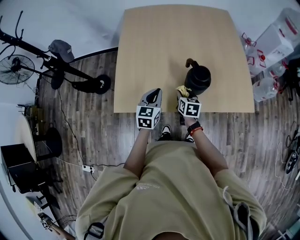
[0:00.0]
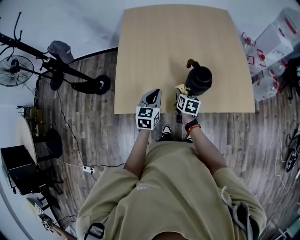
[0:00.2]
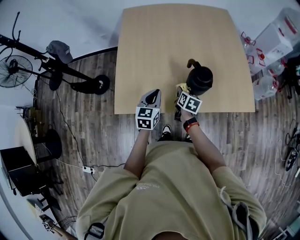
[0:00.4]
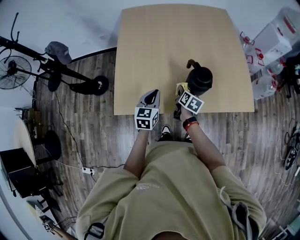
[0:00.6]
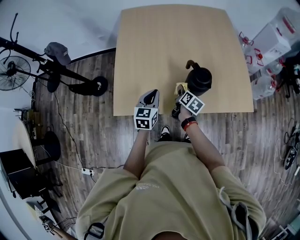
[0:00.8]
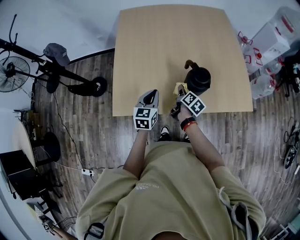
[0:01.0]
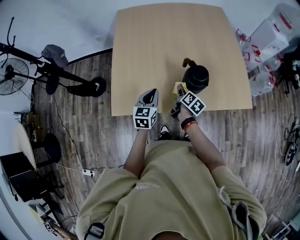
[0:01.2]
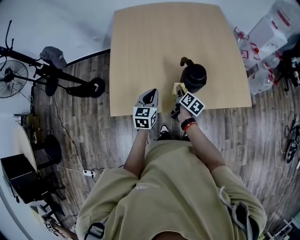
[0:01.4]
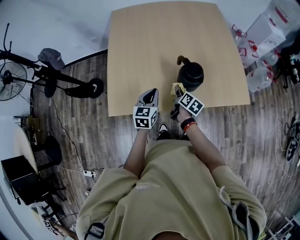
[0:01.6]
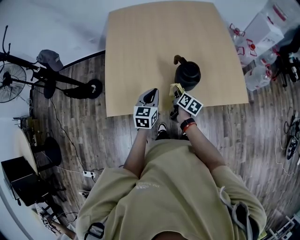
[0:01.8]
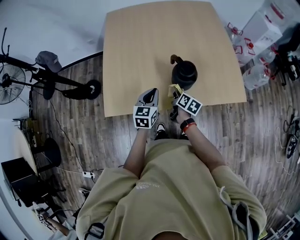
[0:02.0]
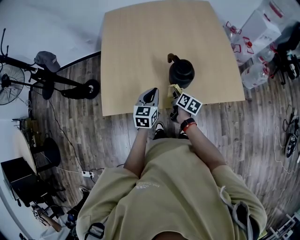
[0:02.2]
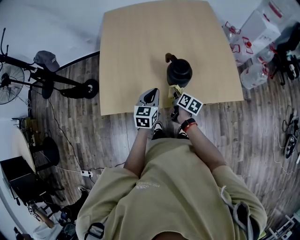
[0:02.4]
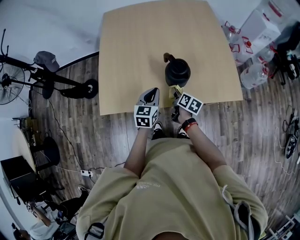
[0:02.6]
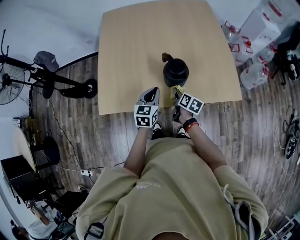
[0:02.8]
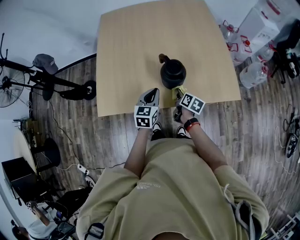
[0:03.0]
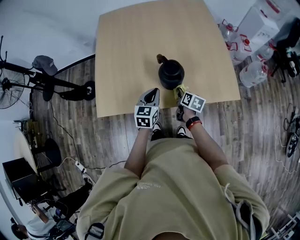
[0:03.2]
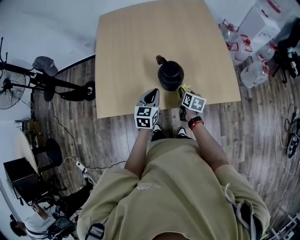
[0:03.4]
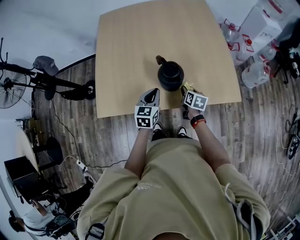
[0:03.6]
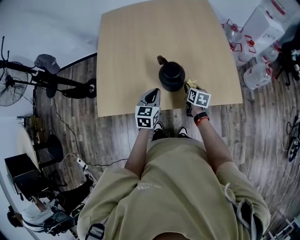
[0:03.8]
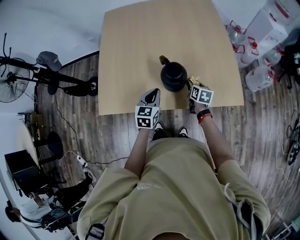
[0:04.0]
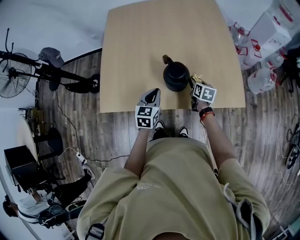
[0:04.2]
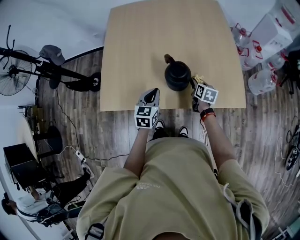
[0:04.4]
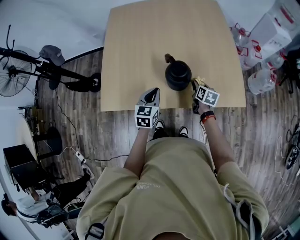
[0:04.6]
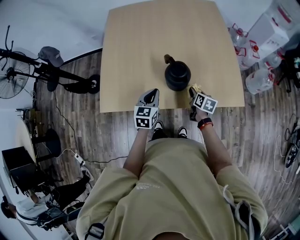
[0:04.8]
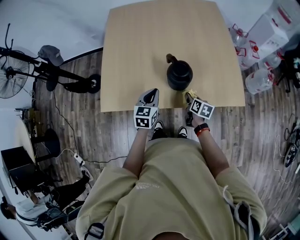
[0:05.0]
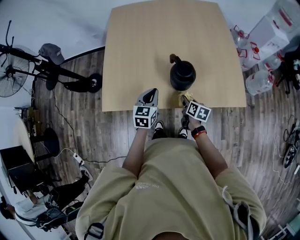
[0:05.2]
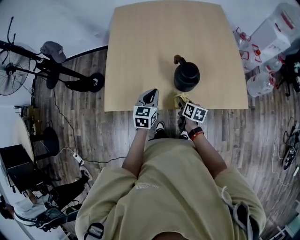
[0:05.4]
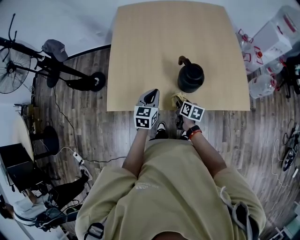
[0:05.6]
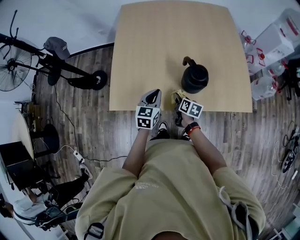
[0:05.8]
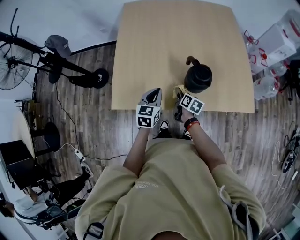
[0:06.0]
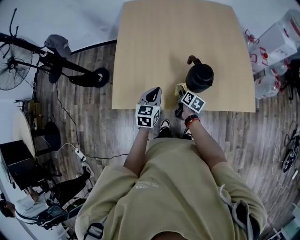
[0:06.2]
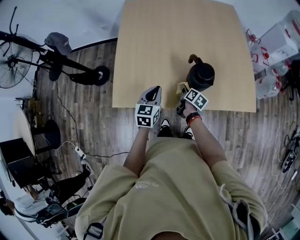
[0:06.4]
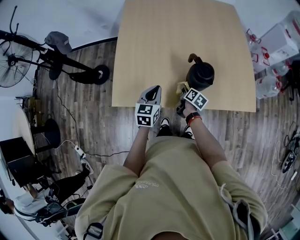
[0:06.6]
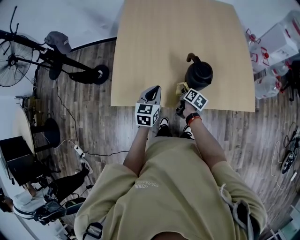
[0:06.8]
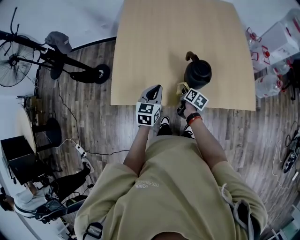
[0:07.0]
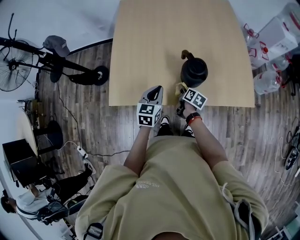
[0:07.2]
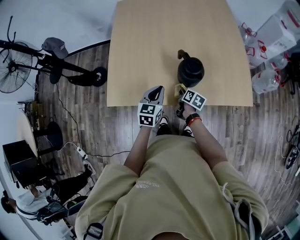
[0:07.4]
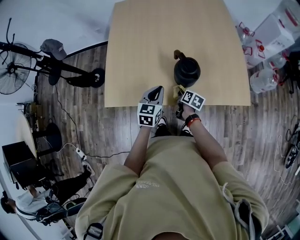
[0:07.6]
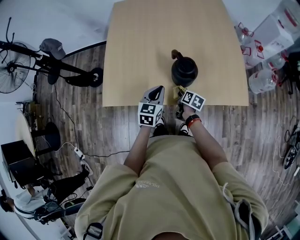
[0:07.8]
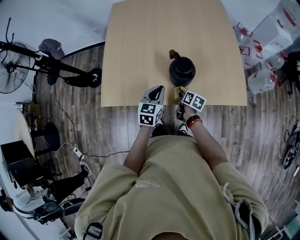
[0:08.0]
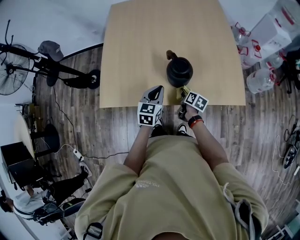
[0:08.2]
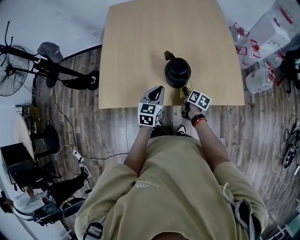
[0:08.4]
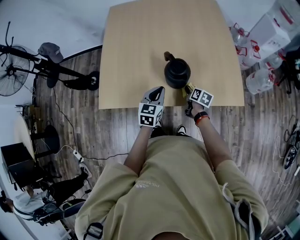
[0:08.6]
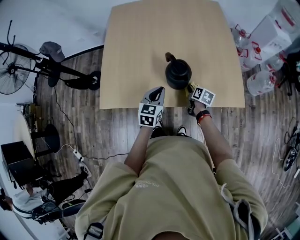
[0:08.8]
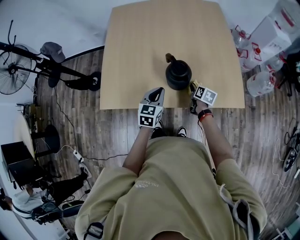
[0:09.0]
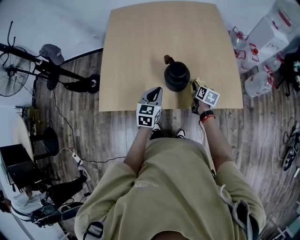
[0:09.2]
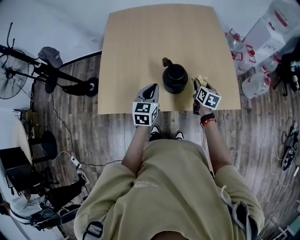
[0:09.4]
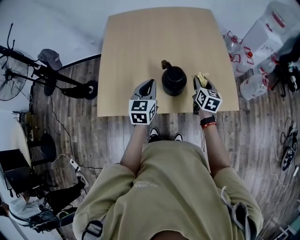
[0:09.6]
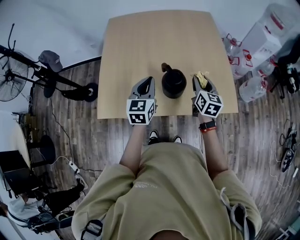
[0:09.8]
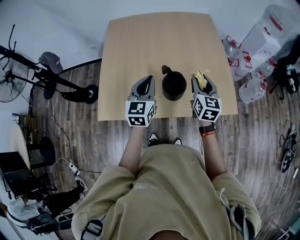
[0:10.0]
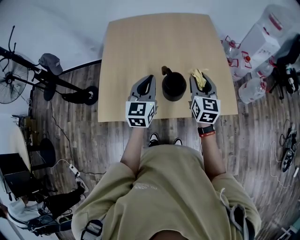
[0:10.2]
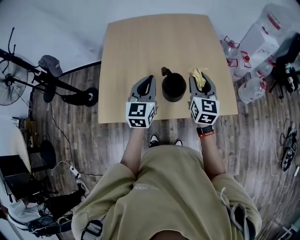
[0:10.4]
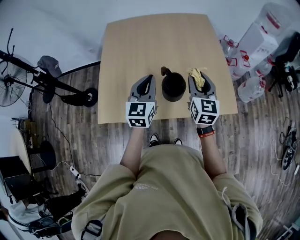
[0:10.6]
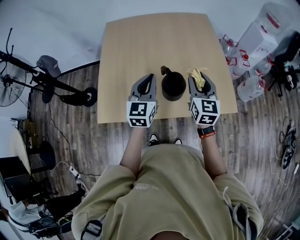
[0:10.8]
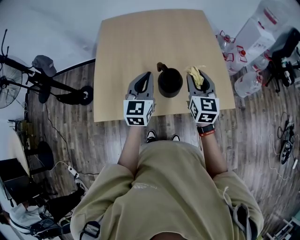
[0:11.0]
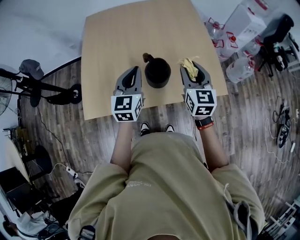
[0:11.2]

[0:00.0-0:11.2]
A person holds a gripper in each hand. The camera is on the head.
0:00.0 to 0:01.6: The right gripper turns by about 40 degrees.
0:01.6 to 0:03.2: Both grippers travel together to the right, roughly 15 cm.
0:03.2 to 0:04.8: The right gripper goes forward and returns, some 10 cm each way.
0:04.8 to 0:06.4: The grippers both shift to the left by about 15 cm.
0:06.4 to 0:08.0: The grippers both shift to the right by roughly 10 cm.
0:08.0 to 0:09.6: The left gripper shifts about 10 cm upward; the right gripper moves upward and to the right, roughly 20 cm, and turns by roughly 40 degrees.
0:09.6 to 0:11.2: The left gripper heads upward, covering roughly 5 cm. Meanwhile the right gripper goes approximately 15 cm upward, and swivels roughly 20 degrees.

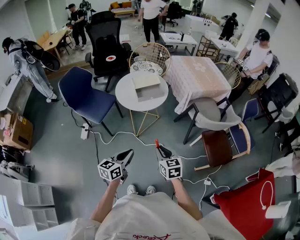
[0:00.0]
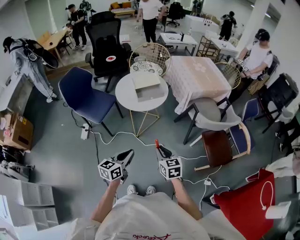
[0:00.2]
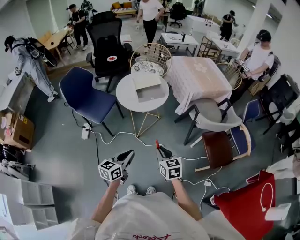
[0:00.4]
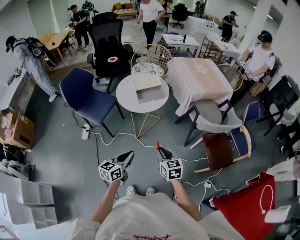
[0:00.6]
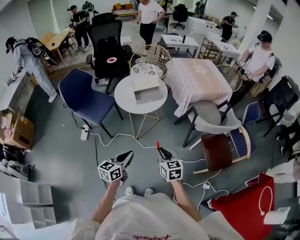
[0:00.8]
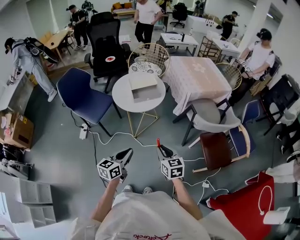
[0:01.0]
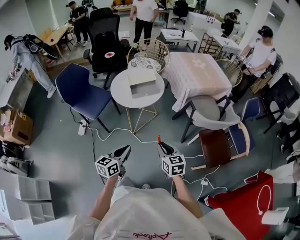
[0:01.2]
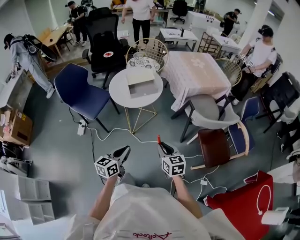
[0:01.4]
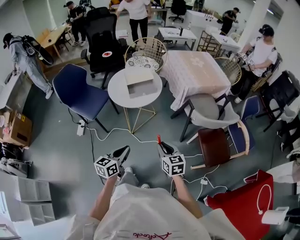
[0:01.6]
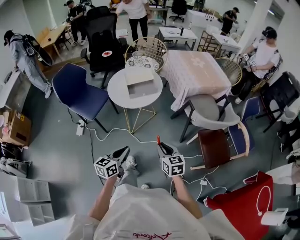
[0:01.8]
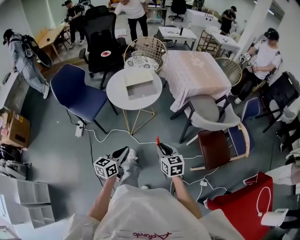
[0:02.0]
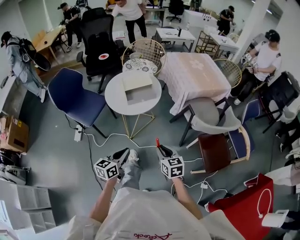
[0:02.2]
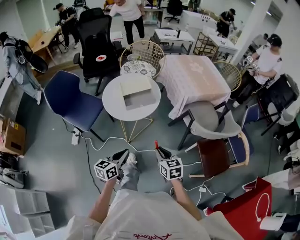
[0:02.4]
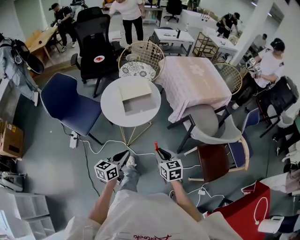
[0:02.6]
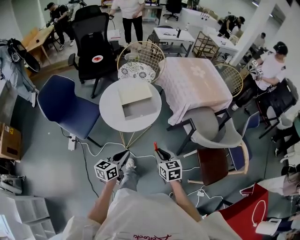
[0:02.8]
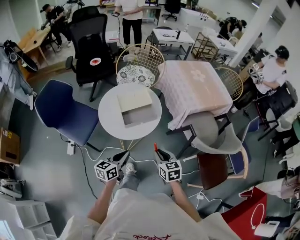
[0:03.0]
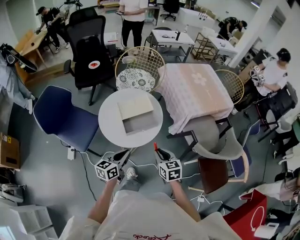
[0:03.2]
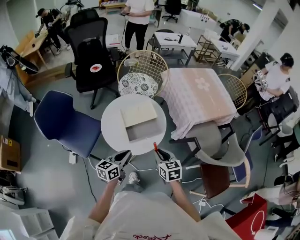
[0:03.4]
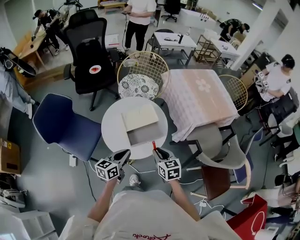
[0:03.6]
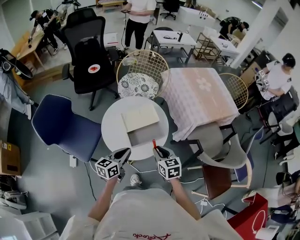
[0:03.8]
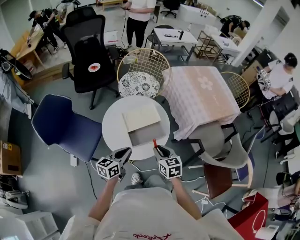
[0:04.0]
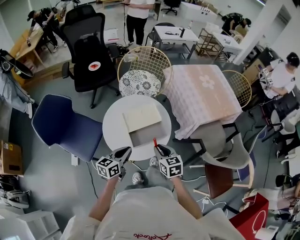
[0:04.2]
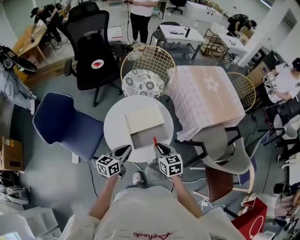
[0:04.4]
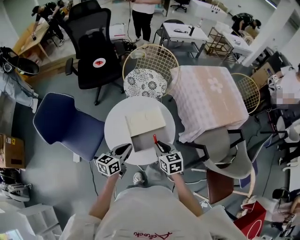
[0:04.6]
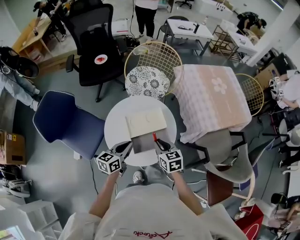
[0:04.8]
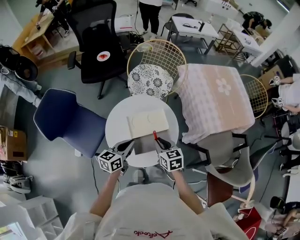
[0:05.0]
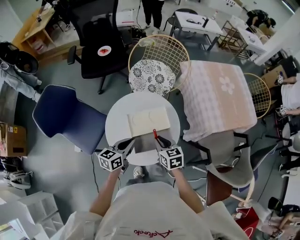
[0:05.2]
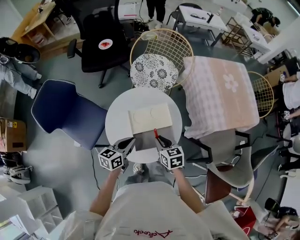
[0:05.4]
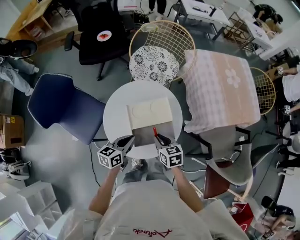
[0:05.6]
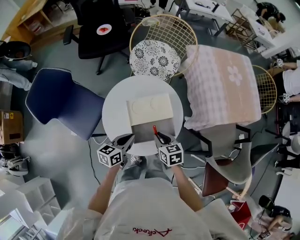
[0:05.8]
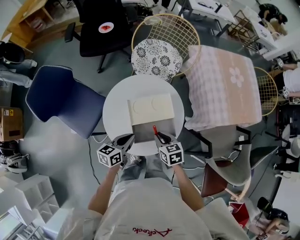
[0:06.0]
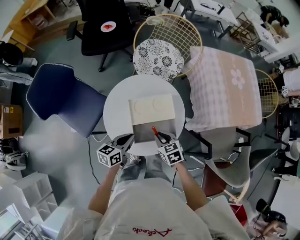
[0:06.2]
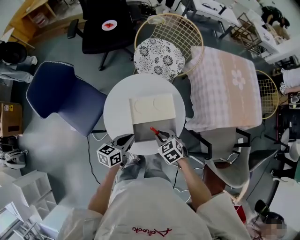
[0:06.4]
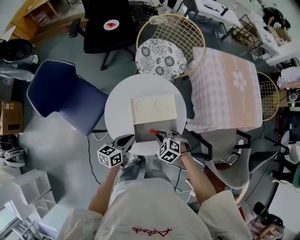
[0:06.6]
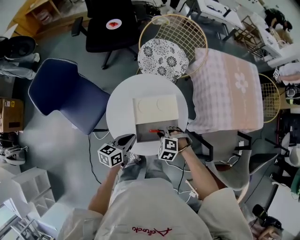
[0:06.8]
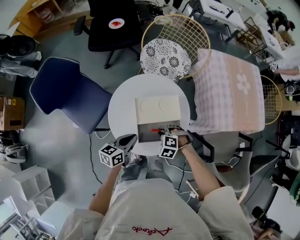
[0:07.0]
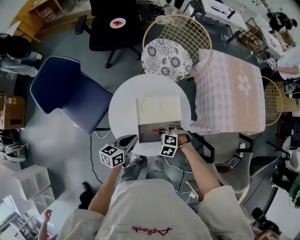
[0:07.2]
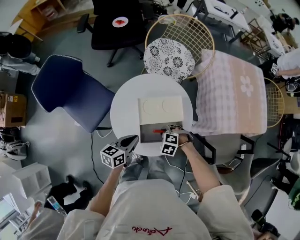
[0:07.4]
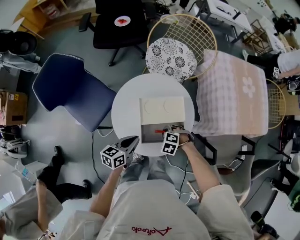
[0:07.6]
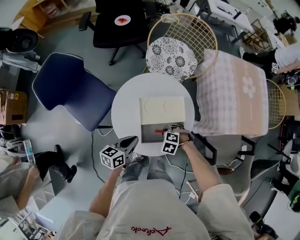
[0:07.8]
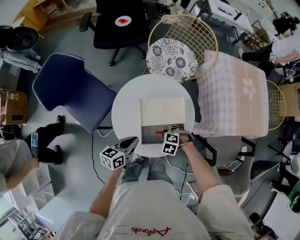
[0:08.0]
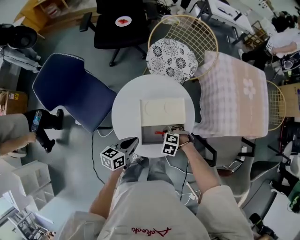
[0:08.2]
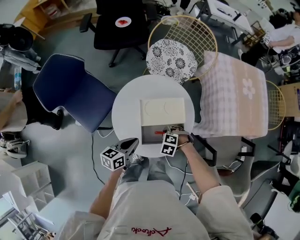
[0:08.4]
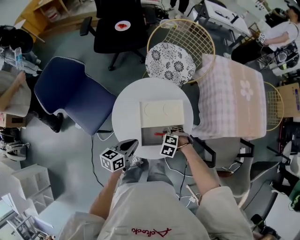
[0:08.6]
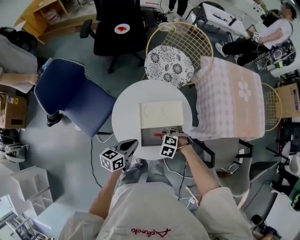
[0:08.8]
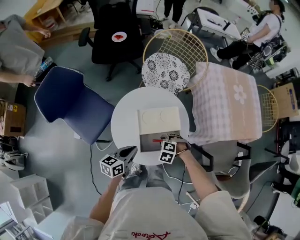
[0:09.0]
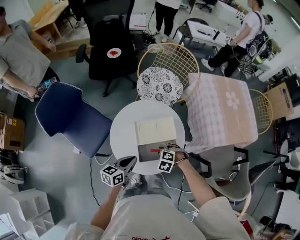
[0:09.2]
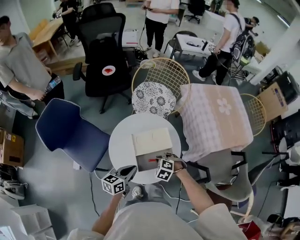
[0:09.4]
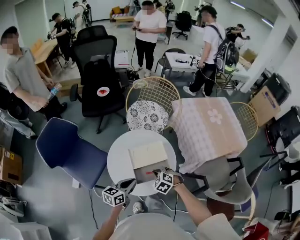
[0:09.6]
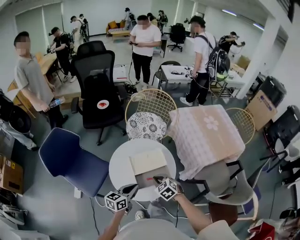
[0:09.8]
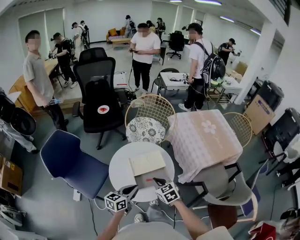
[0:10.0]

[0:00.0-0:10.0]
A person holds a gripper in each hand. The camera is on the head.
0:00.0 to 0:01.4: The two grippers go some 5 cm to the right.
0:01.4 to 0:02.8: Both grippers travel together forward, approximately 20 cm.
0:02.8 to 0:04.2: Both grippers move forward and to the left, approximately 25 cm.
0:04.2 to 0:05.8: The right gripper heads downward and forward, covering about 15 cm. Meanwhile the left gripper moves forward and downward, roughly 10 cm.
0:05.8 to 0:07.2: The right gripper travels downward by roughly 10 cm, and twists roughly 70 degrees counterclockwise, seen from behind.
0:07.2 to 0:08.6: The grippers move only a little.
0:08.6 to 0:10.0: The right gripper travels upward by some 20 cm, and points its fingers roughly 40 degrees further upward. Meanwhile the left gripper is displaced upward by roughly 10 cm, and turns by some 20 degrees.

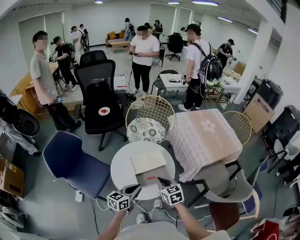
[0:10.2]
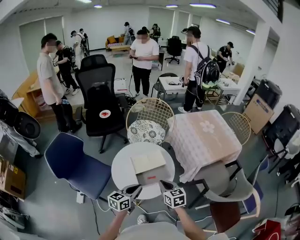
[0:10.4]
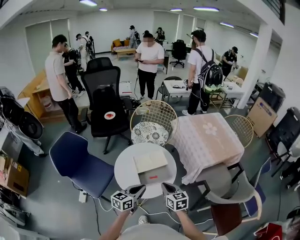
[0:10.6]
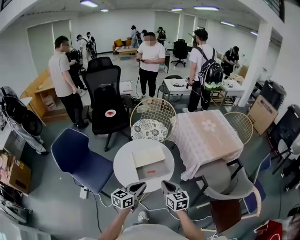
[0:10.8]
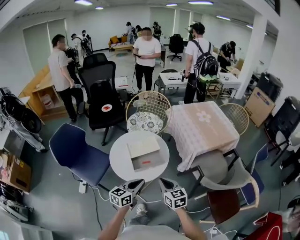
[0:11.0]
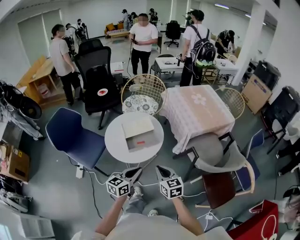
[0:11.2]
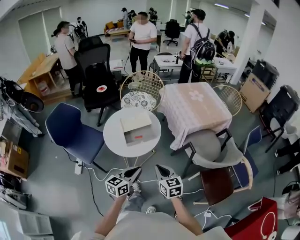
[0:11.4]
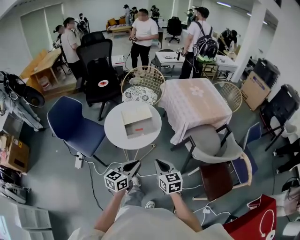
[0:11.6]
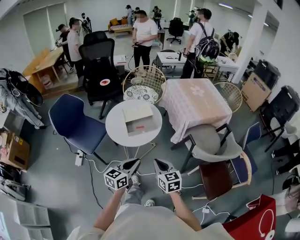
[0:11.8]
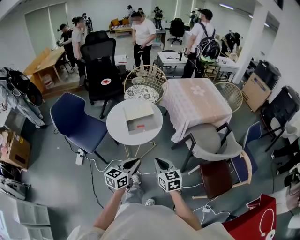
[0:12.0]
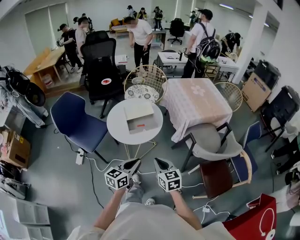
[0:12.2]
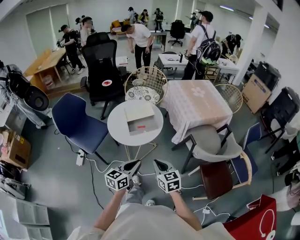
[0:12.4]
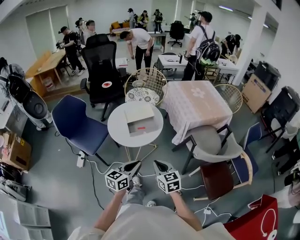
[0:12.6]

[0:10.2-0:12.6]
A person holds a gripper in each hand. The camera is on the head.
0:10.2 to 0:11.4: Both grippers travel together backward and to the right, about 25 cm.
0:11.4 to 0:12.6: Both grippers move backward, about 5 cm.
